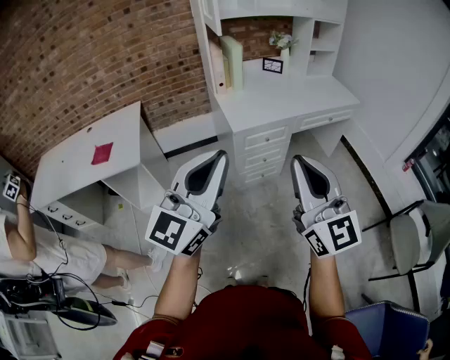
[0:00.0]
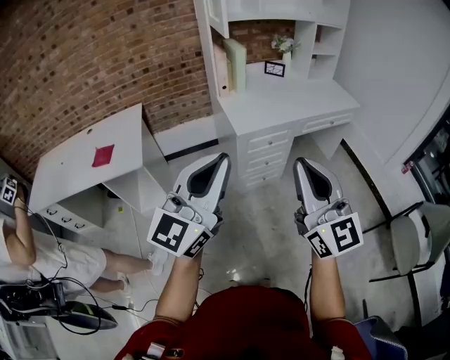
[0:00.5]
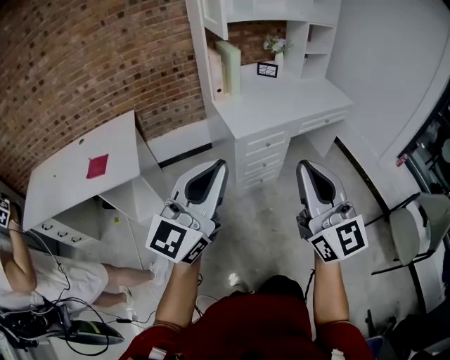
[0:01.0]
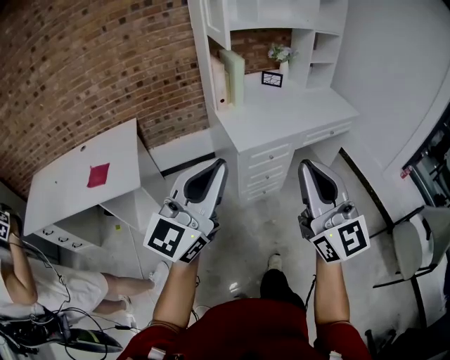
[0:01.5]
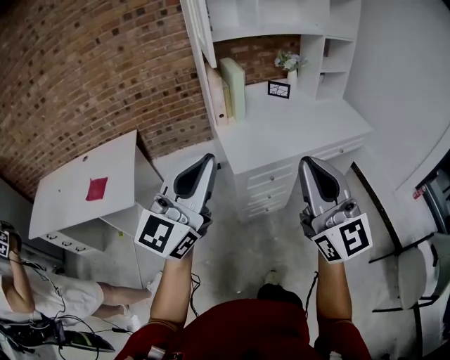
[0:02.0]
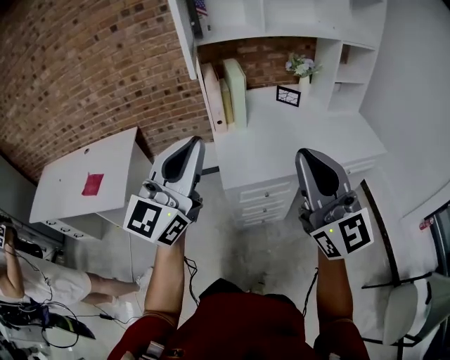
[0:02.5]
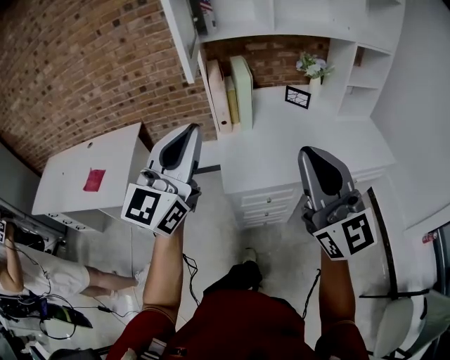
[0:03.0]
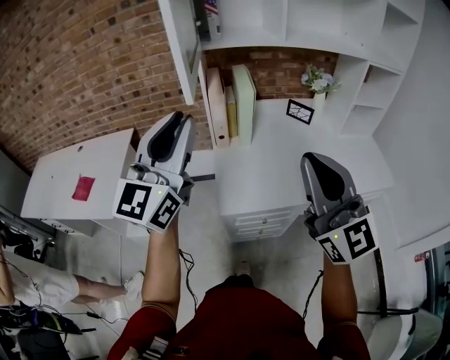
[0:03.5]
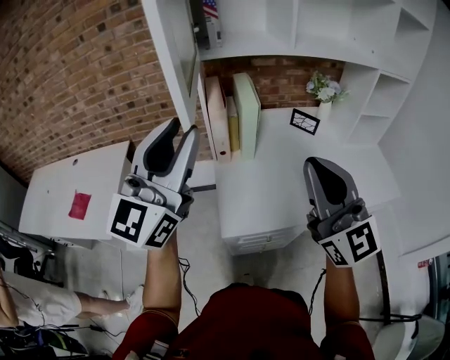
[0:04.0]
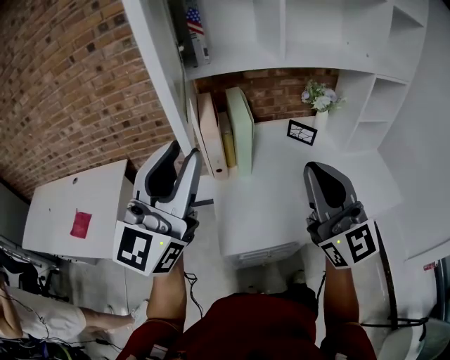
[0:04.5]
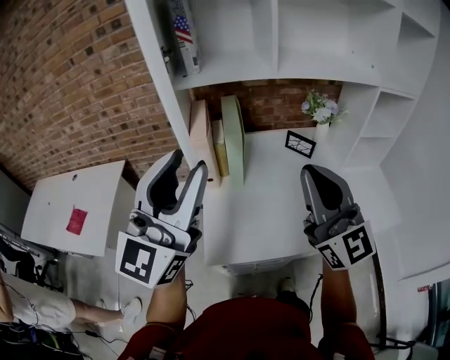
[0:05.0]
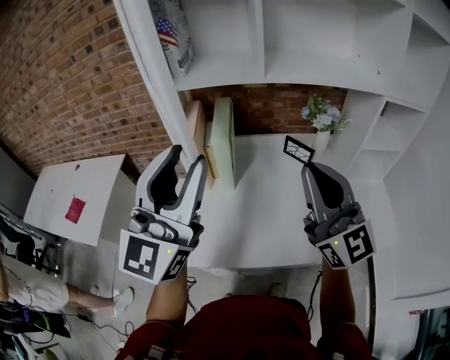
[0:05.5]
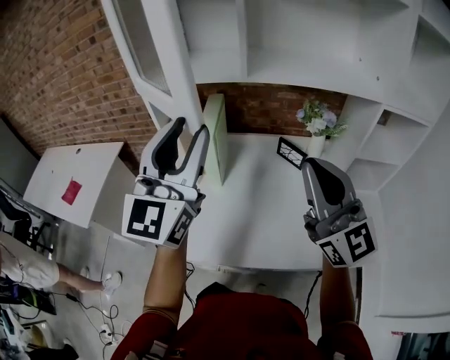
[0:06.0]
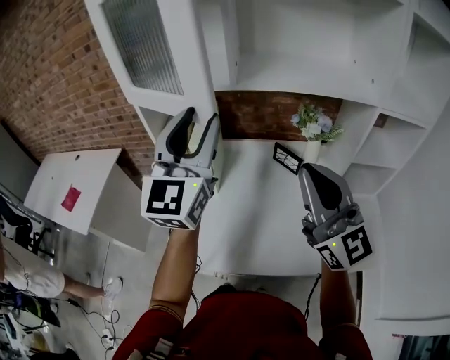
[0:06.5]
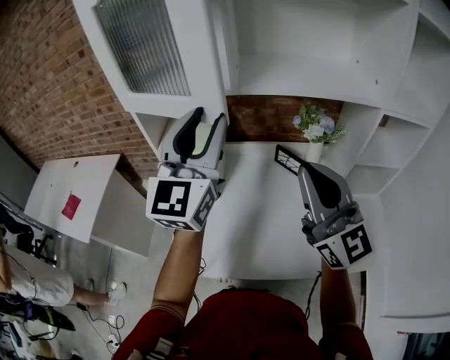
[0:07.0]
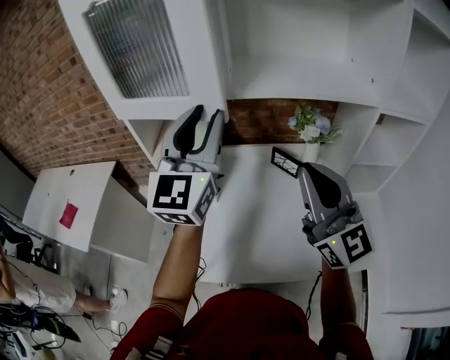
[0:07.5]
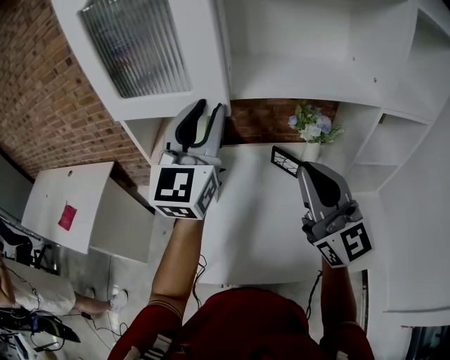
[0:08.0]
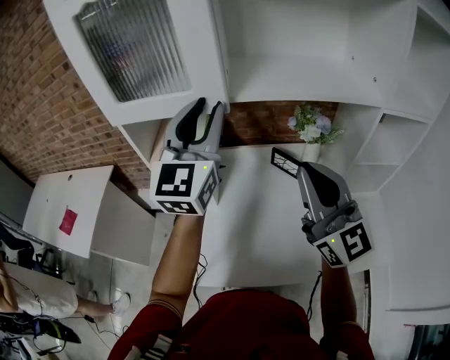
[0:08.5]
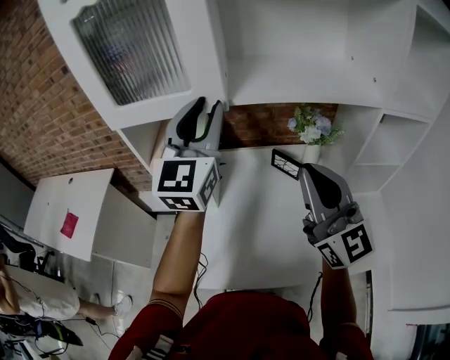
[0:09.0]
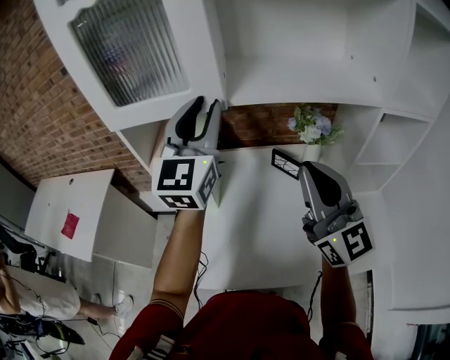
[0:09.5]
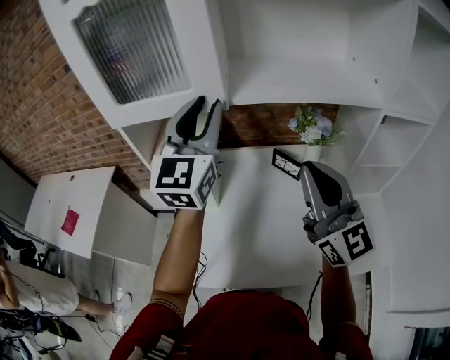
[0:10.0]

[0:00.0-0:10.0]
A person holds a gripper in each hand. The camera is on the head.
0:00.0 to 0:02.0: Both grippers travel together forward, some 20 cm.
0:02.0 to 0:04.0: Both grippers move forward, approximately 35 cm. The left gripper opens up.
0:04.0 to 0:06.0: Both grippers travel together to the right and forward, some 25 cm. The left gripper turns by approximately 20 degrees.
0:06.0 to 0:08.0: The left gripper moves forward and to the right, some 15 cm. The right gripper shifts some 5 cm forward.
0:08.0 to 0:10.0: There are only small adjustments of the grippers.

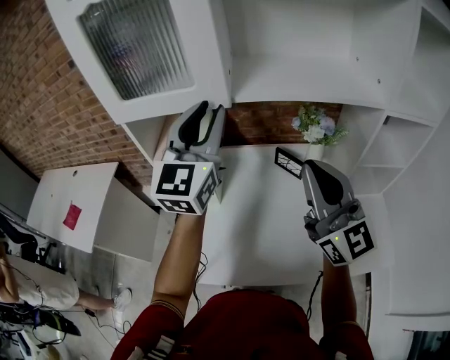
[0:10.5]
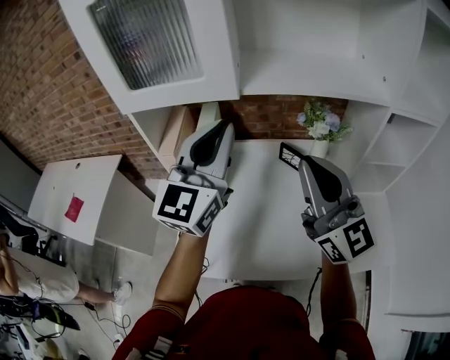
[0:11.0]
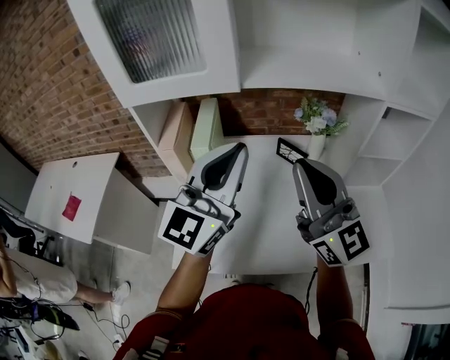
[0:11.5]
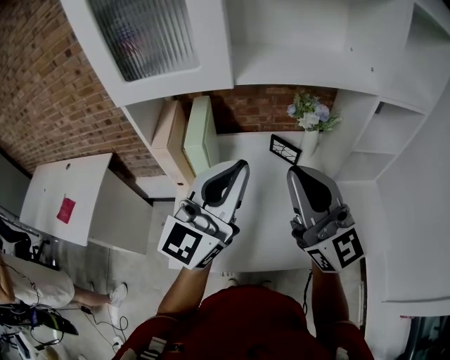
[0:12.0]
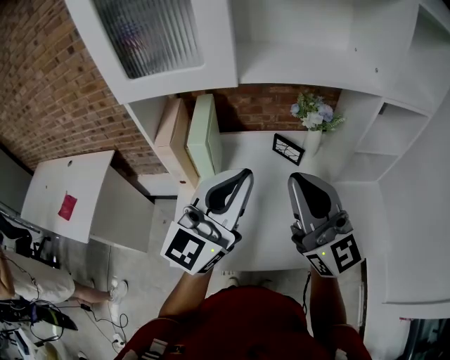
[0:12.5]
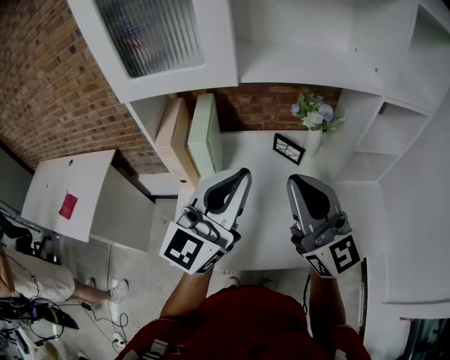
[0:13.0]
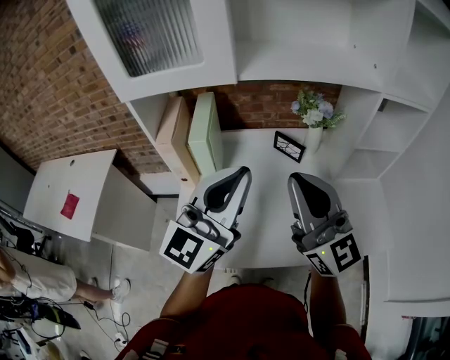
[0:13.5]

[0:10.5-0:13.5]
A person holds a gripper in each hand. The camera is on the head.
0:10.5 to 0:12.0: The left gripper shifts roughly 15 cm backward, changes its angle by approximately 20 degrees, and closes up. Meanwhile the right gripper goes about 5 cm backward.
0:12.0 to 0:13.5: The grippers stay close to where they were, moving slightly.

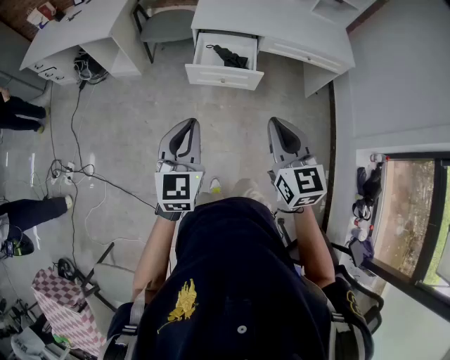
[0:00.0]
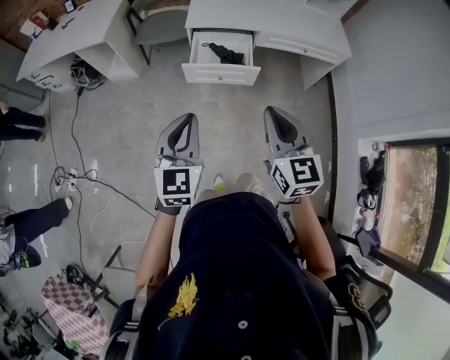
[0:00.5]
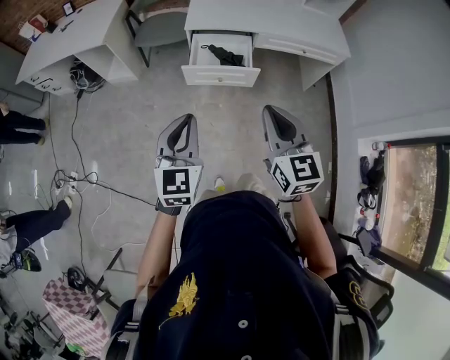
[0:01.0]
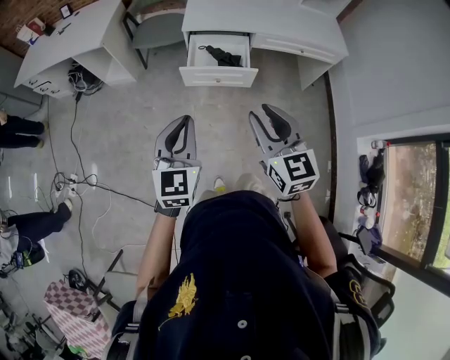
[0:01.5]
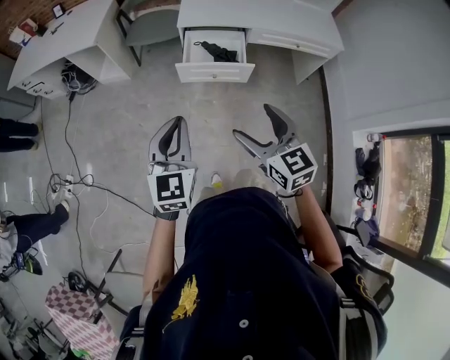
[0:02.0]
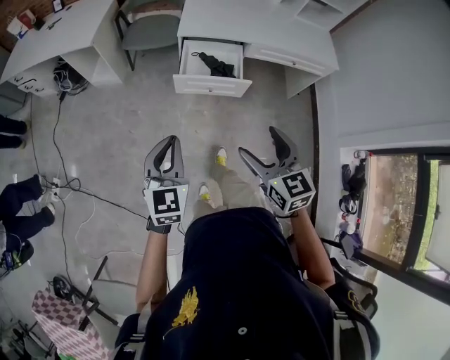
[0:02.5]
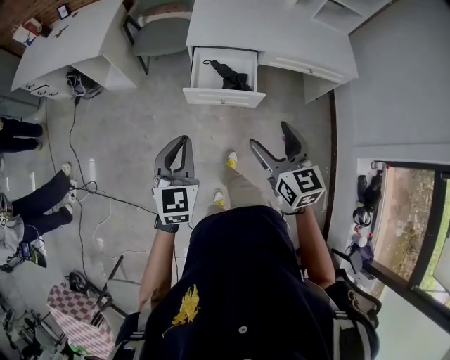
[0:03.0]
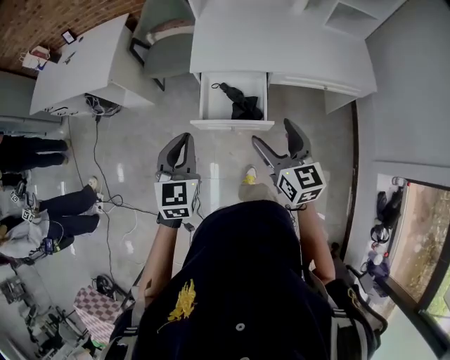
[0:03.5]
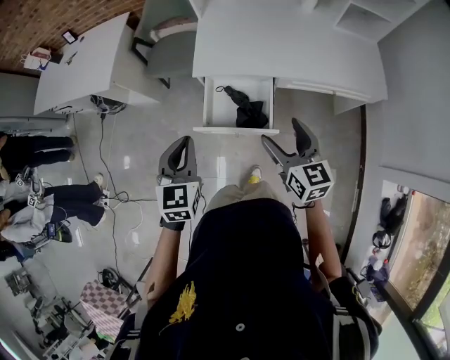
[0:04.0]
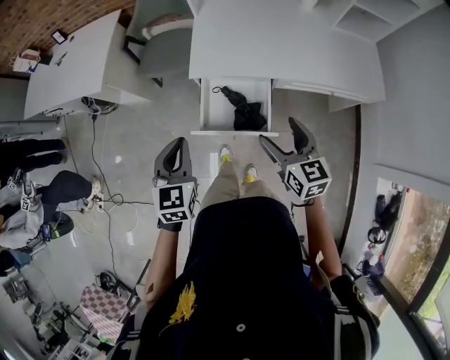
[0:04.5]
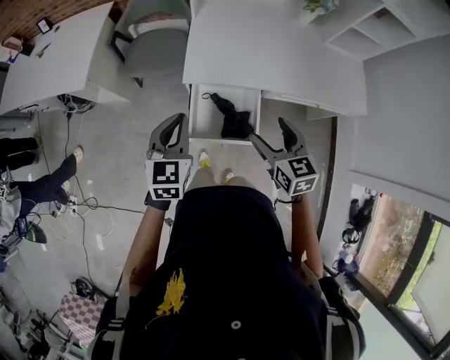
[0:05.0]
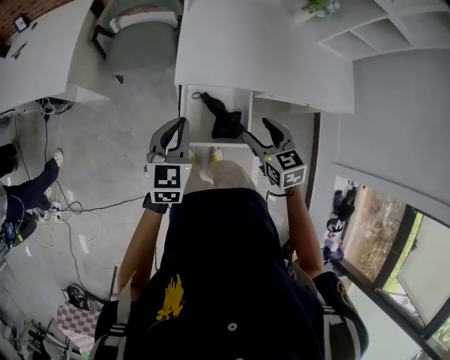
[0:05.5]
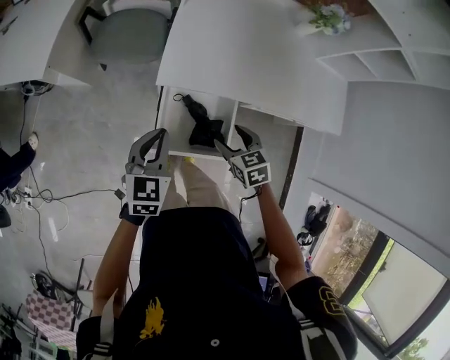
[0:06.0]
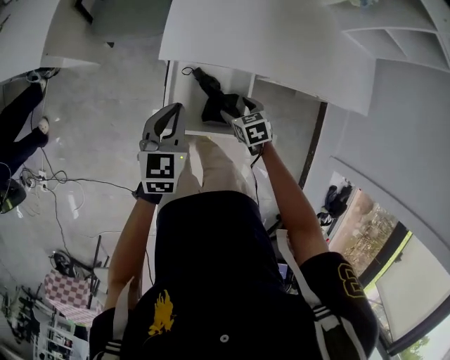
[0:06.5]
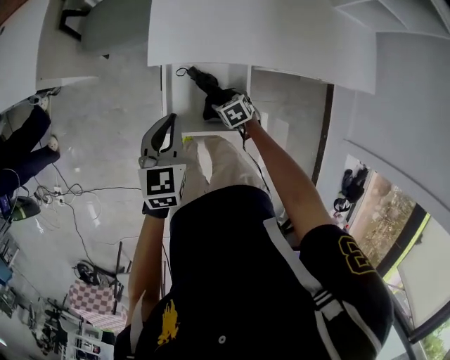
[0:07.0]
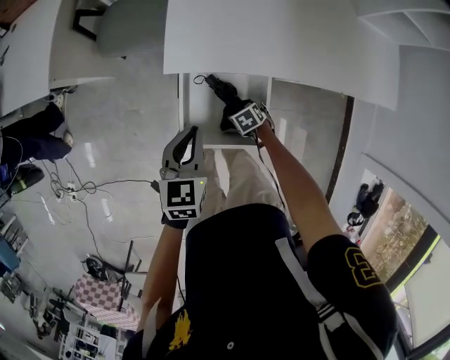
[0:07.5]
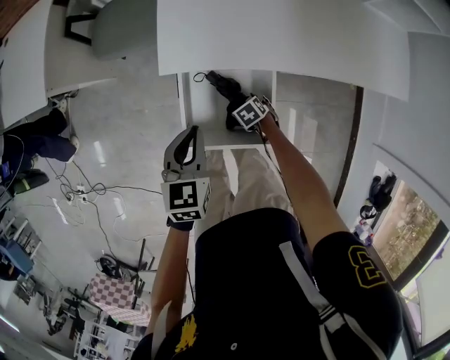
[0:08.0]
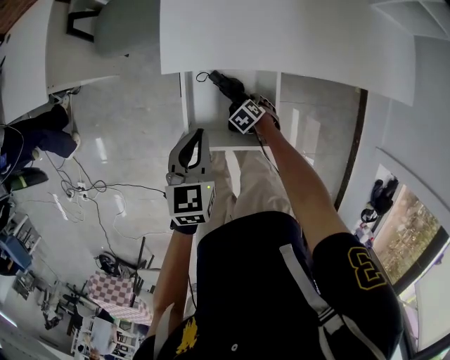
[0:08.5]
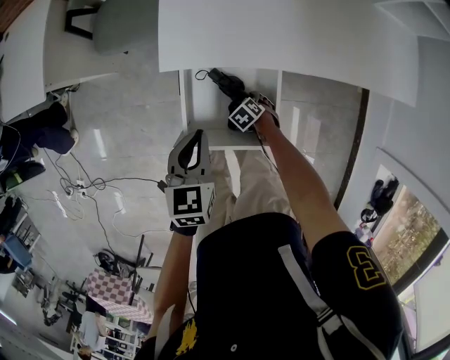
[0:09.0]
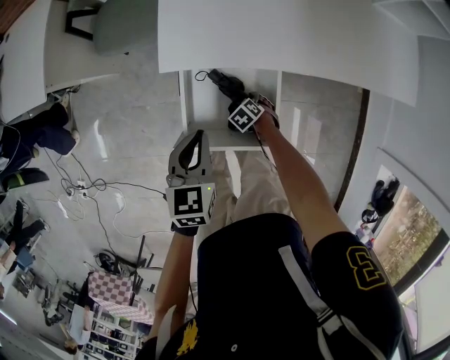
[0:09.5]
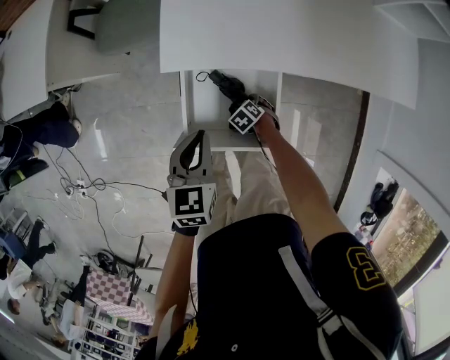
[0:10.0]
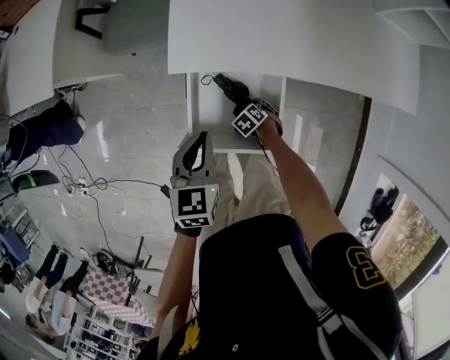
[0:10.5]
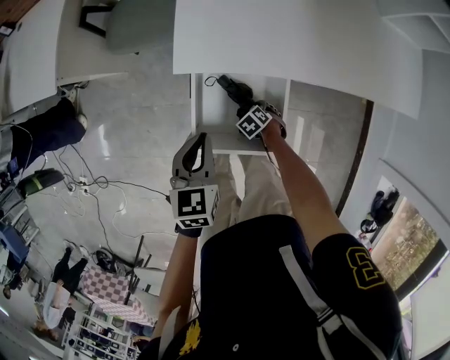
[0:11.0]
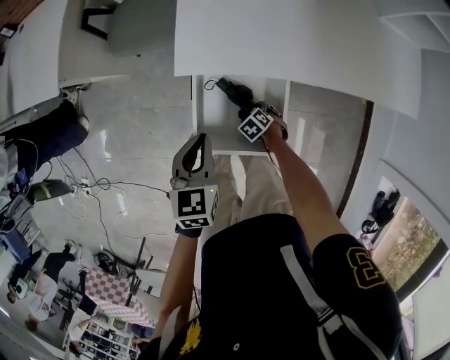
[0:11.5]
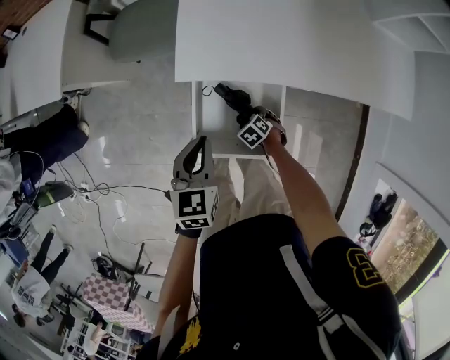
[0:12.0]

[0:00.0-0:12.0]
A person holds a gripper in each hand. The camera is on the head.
0:00.0 to 0:02.0: The right gripper heads to the left, covering some 5 cm, and opens up.
0:02.0 to 0:04.0: The left gripper travels forward by about 35 cm. Meanwhile the right gripper goes roughly 40 cm forward and to the right.
0:04.0 to 0:06.0: The right gripper travels downward and forward by about 25 cm, and tilts its fingers about 40 degrees downward. Meanwhile the left gripper travels forward and downward by approximately 20 cm.
0:06.0 to 0:08.0: The right gripper shifts some 30 cm downward, and turns by roughly 30 degrees, while the left gripper is displaced downward by approximately 10 cm.
0:08.0 to 0:12.0: The grippers make only small movements.

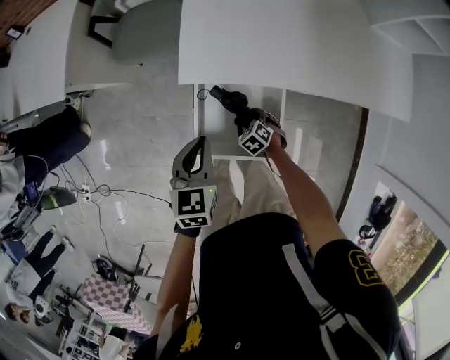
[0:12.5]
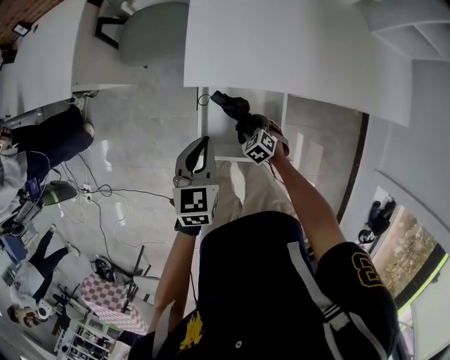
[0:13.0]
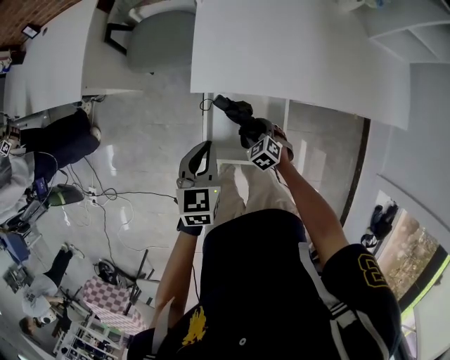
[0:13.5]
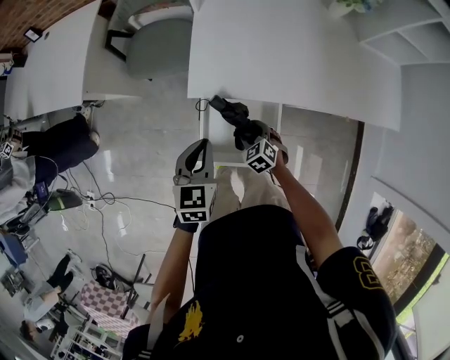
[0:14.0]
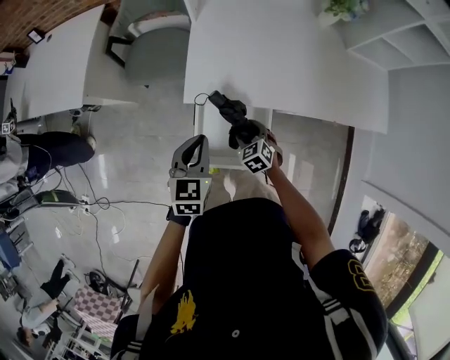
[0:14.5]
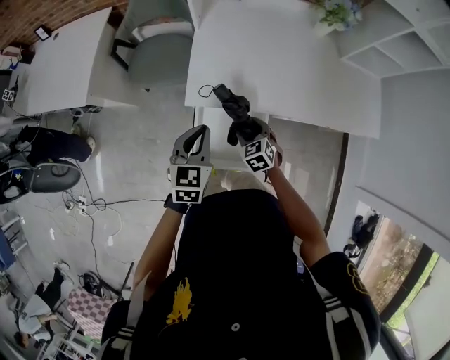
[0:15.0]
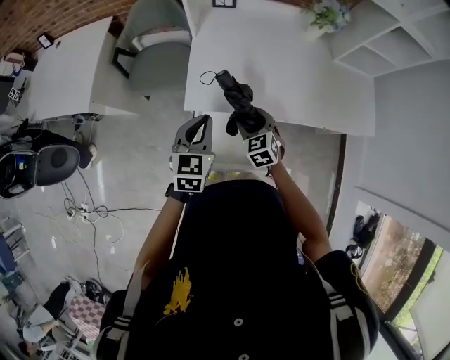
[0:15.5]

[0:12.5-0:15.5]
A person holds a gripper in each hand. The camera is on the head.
0:12.5 to 0:14.0: The right gripper moves upward, about 10 cm.
0:14.0 to 0:15.5: The right gripper goes approximately 20 cm upward, and swivels some 20 degrees; the left gripper travels upward and forward by about 10 cm.
